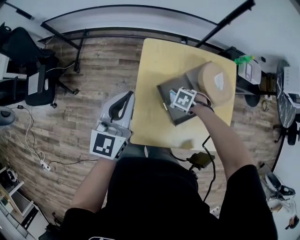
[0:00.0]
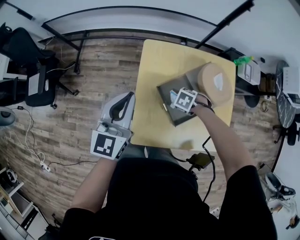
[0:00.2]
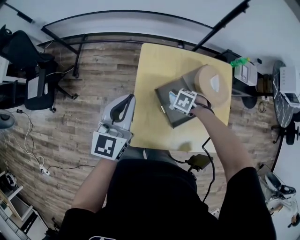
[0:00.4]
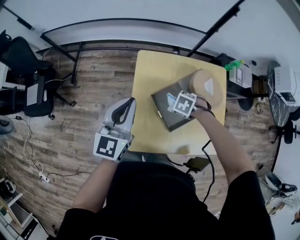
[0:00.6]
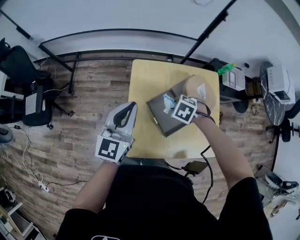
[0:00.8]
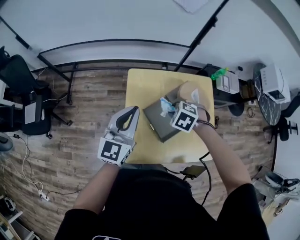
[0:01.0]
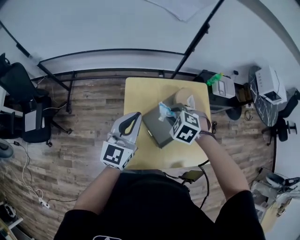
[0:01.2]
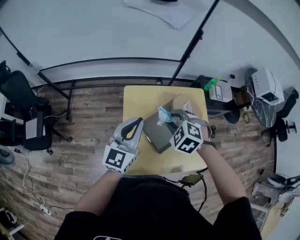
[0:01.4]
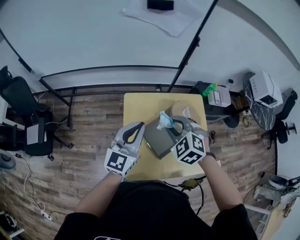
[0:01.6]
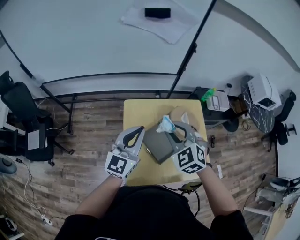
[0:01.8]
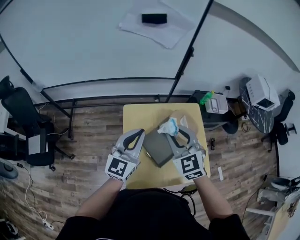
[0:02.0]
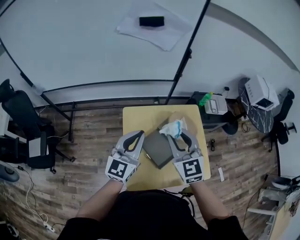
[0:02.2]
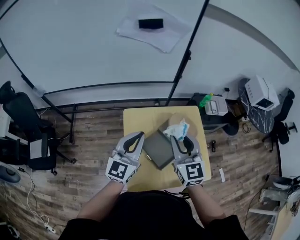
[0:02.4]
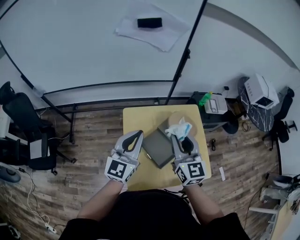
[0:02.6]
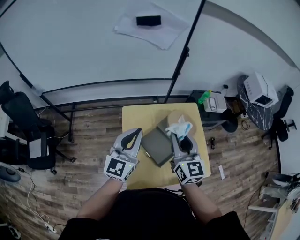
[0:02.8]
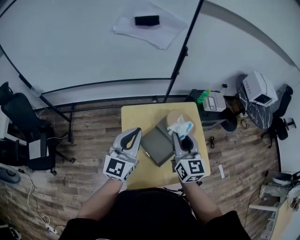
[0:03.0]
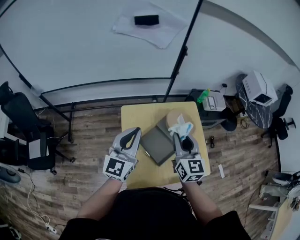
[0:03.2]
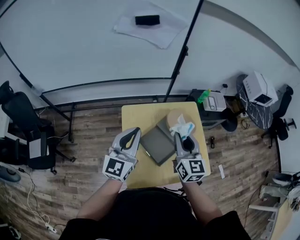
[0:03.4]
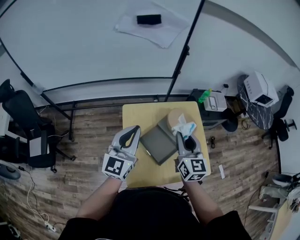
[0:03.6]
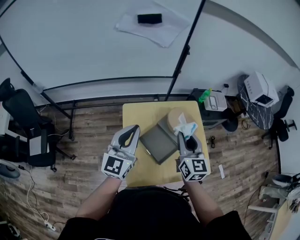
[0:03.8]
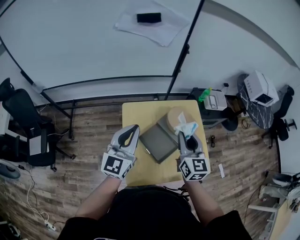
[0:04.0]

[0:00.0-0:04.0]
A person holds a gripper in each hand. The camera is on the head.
0:00.0 to 0:01.4: The right gripper shifts about 30 cm upward, and rotates approximately 40 degrees. The left gripper shifts by about 10 cm.
0:01.4 to 0:02.6: The left gripper moves roughly 5 cm, while the right gripper moves upward, about 15 cm, and tilts its fingers approximately 50 degrees upward.
0:02.6 to 0:04.0: The right gripper moves roughly 5 cm.

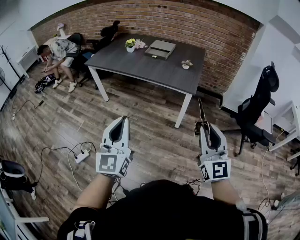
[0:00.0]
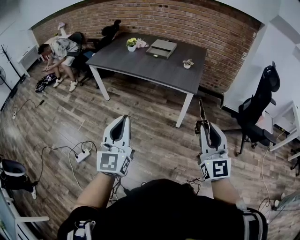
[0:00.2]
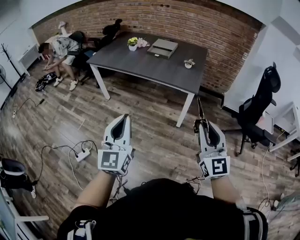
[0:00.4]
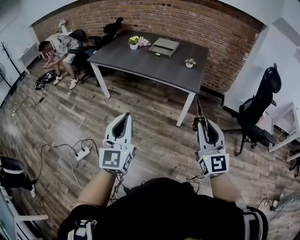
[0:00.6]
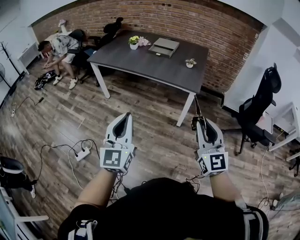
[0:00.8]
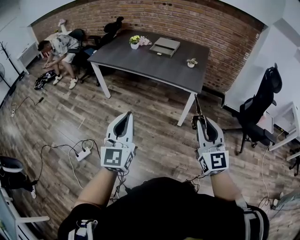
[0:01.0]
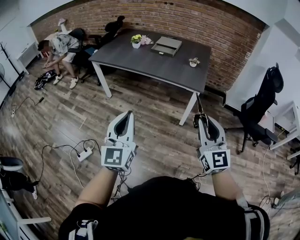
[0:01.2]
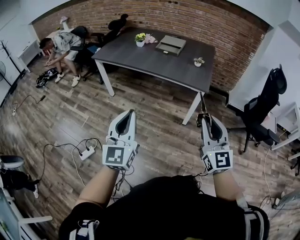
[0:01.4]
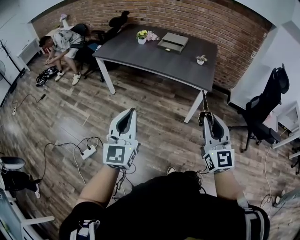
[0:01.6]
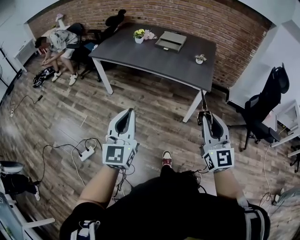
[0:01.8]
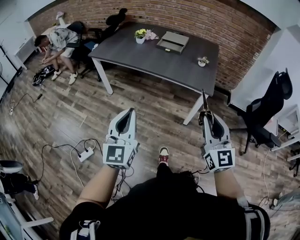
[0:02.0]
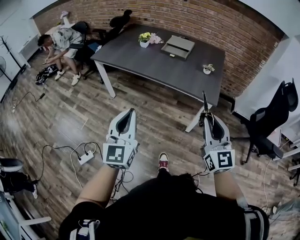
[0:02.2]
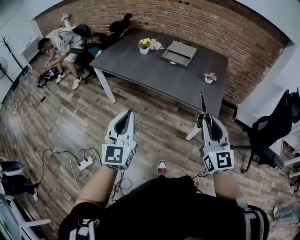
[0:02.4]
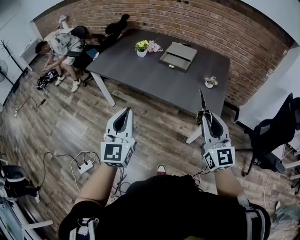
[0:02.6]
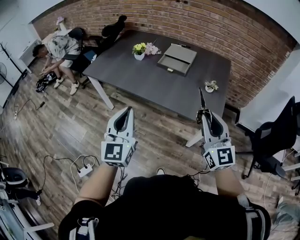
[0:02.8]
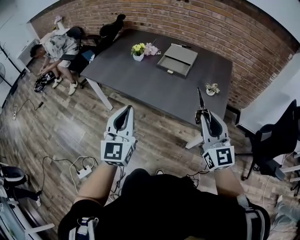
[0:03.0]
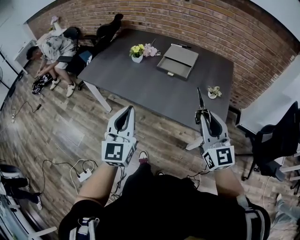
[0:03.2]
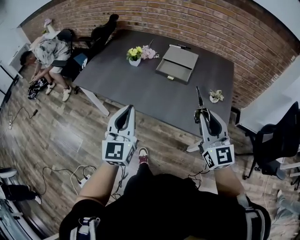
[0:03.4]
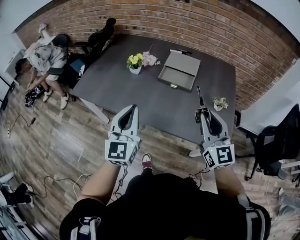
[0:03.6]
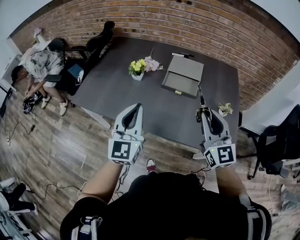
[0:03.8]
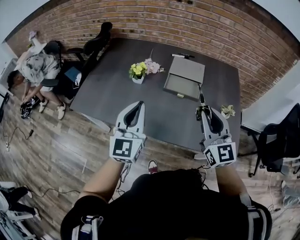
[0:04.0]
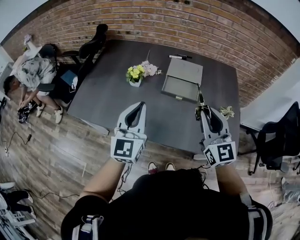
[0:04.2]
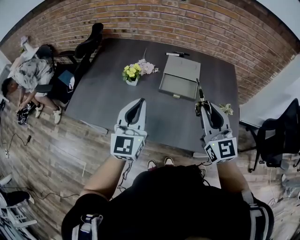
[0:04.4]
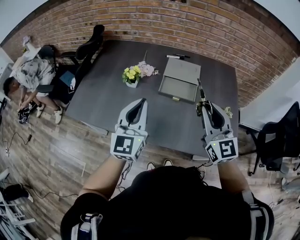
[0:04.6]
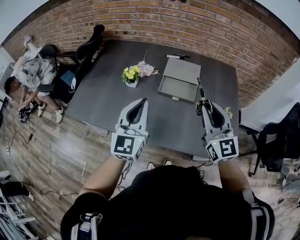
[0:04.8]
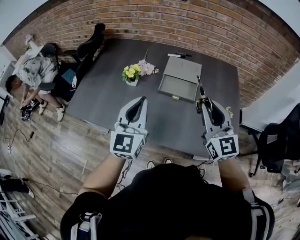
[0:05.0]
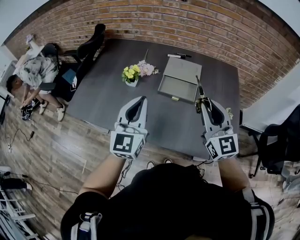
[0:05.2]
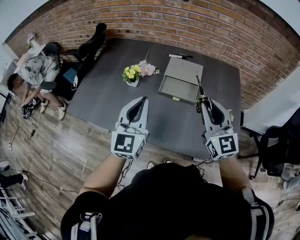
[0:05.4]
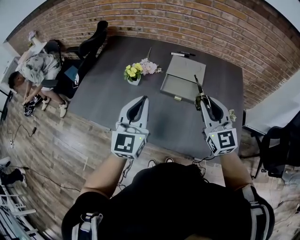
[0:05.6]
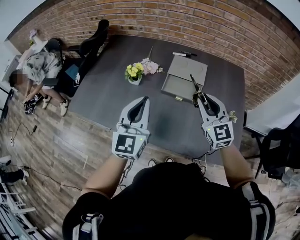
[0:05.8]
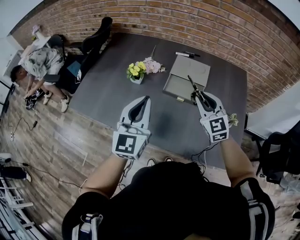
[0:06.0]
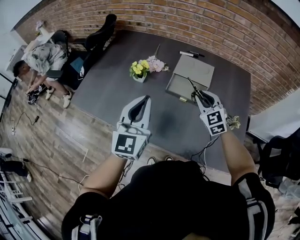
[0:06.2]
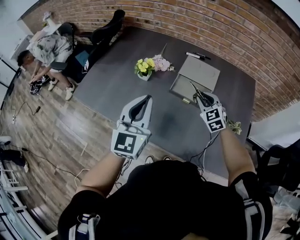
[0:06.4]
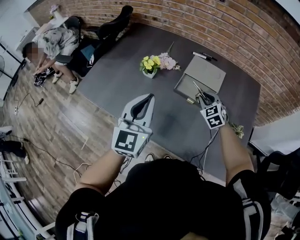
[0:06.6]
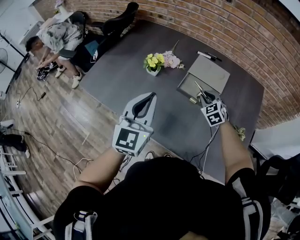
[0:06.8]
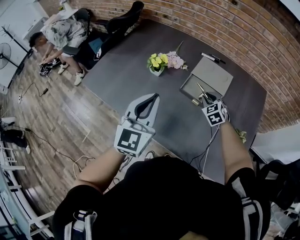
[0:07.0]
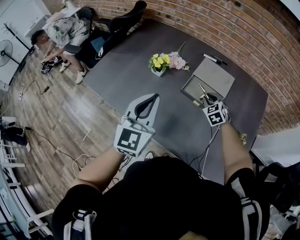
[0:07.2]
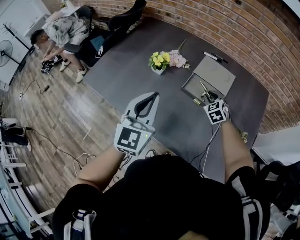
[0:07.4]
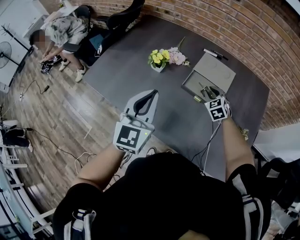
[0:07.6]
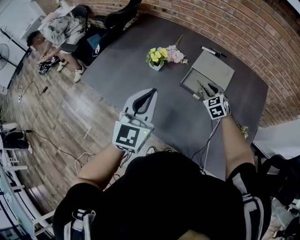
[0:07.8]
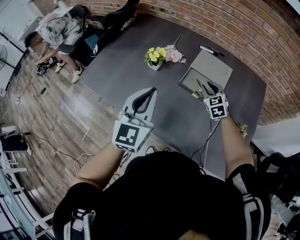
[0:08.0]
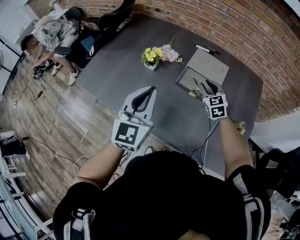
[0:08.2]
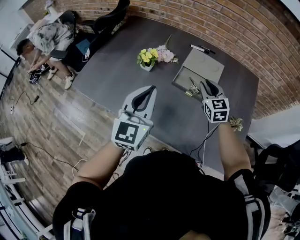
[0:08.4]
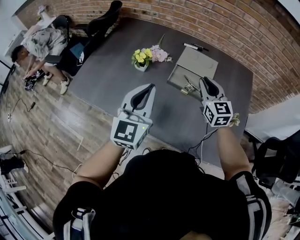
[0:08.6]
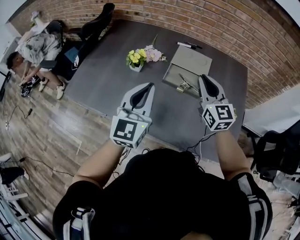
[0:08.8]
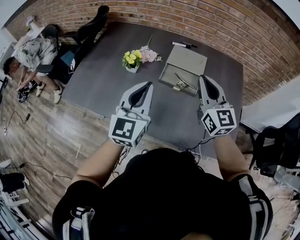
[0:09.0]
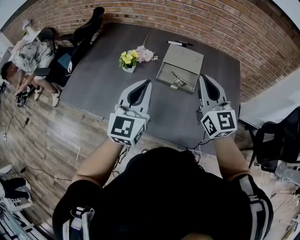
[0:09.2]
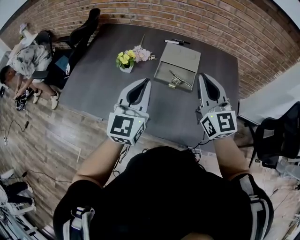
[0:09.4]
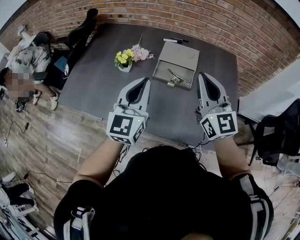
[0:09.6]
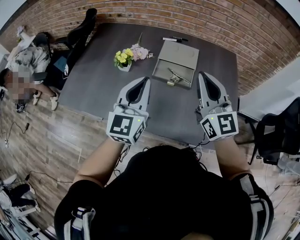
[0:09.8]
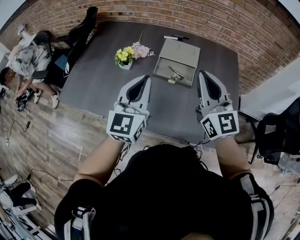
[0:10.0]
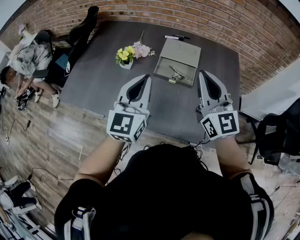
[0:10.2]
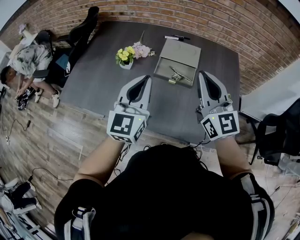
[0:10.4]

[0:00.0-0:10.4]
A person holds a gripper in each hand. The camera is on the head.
0:00.0 to 0:01.4: Both grippers move to the left, some 10 cm.
0:01.4 to 0:03.0: The grippers both shift forward by approximately 40 cm.
0:03.0 to 0:04.4: The grippers both shift forward by approximately 30 cm.
0:04.4 to 0:06.0: The right gripper travels forward and downward by roughly 15 cm, and turns by about 20 degrees.
0:06.0 to 0:07.4: The right gripper is displaced downward and forward by roughly 20 cm, and swivels about 30 degrees.
0:07.4 to 0:09.0: The right gripper is displaced upward and backward by approximately 30 cm, and points its fingers approximately 40 degrees further upward.
0:09.0 to 0:10.4: The right gripper shifts some 5 cm backward.

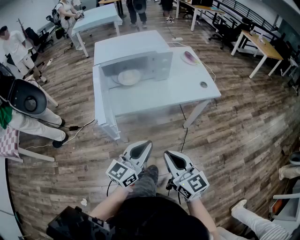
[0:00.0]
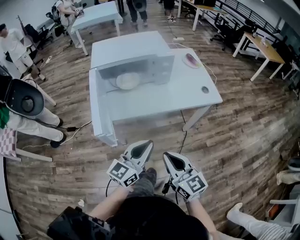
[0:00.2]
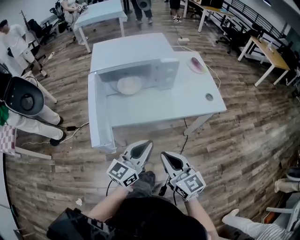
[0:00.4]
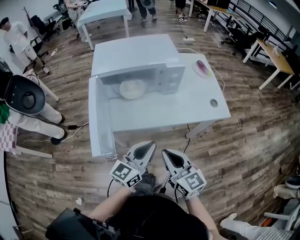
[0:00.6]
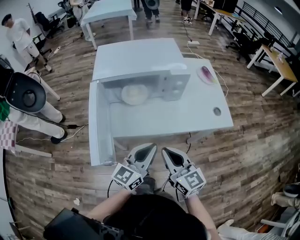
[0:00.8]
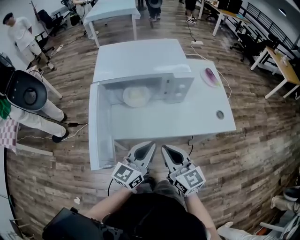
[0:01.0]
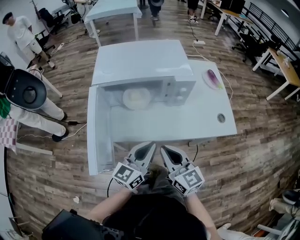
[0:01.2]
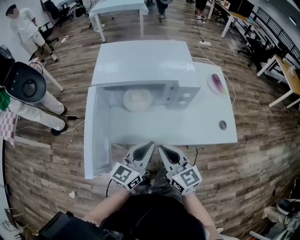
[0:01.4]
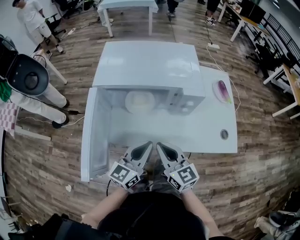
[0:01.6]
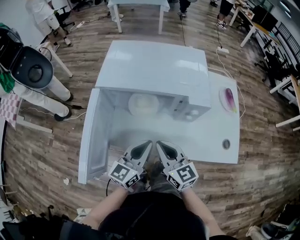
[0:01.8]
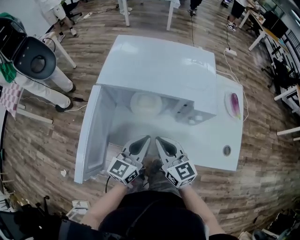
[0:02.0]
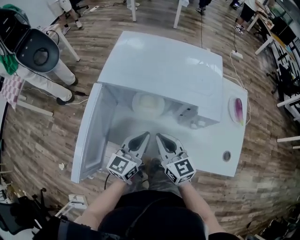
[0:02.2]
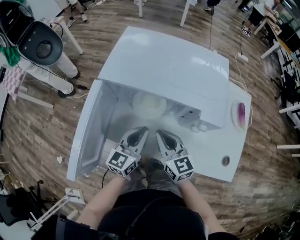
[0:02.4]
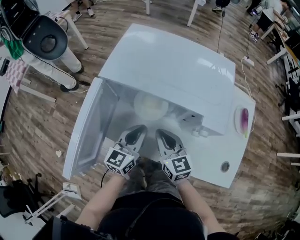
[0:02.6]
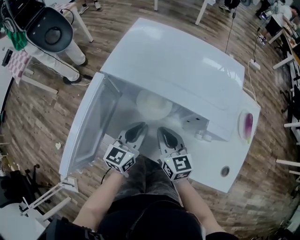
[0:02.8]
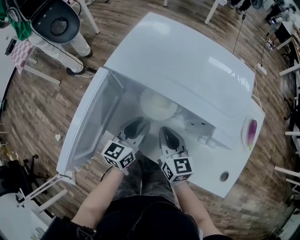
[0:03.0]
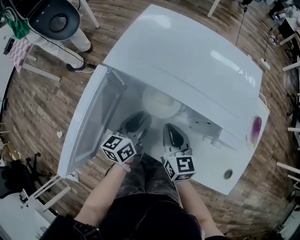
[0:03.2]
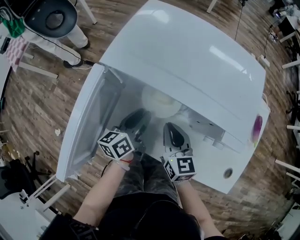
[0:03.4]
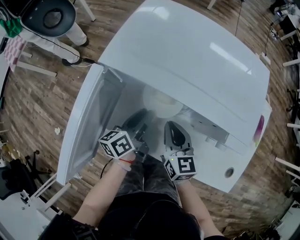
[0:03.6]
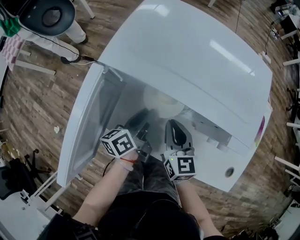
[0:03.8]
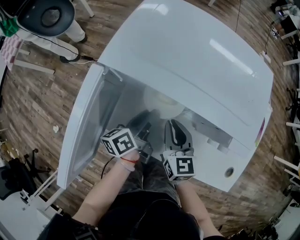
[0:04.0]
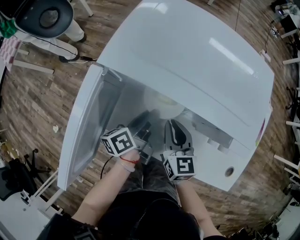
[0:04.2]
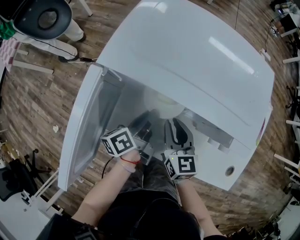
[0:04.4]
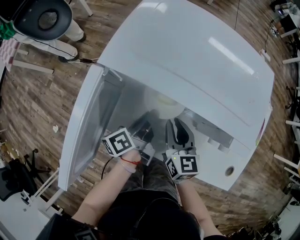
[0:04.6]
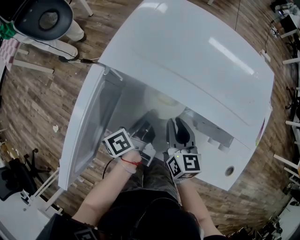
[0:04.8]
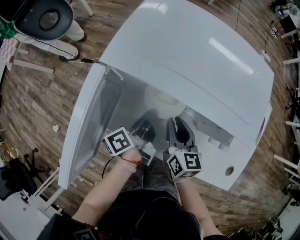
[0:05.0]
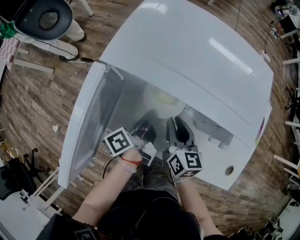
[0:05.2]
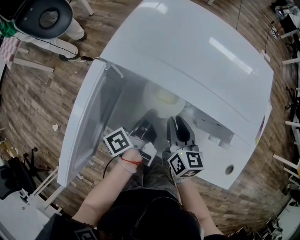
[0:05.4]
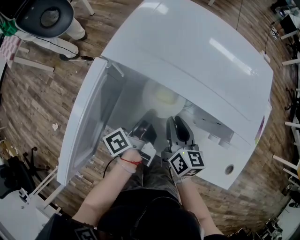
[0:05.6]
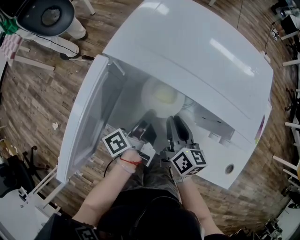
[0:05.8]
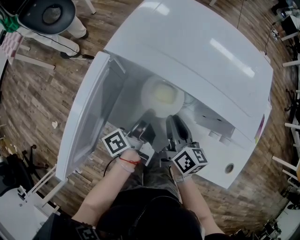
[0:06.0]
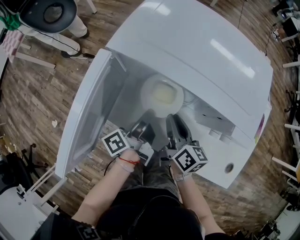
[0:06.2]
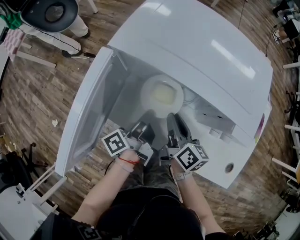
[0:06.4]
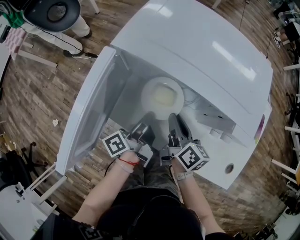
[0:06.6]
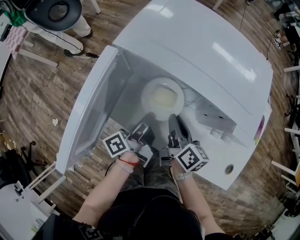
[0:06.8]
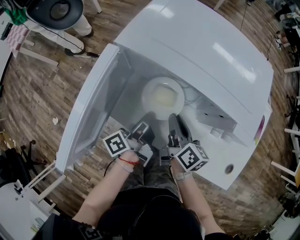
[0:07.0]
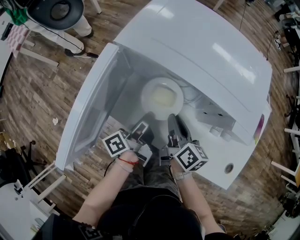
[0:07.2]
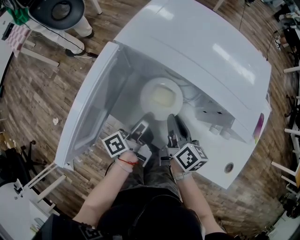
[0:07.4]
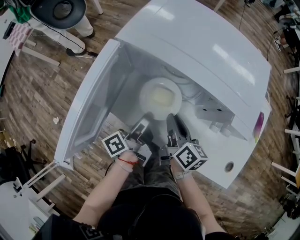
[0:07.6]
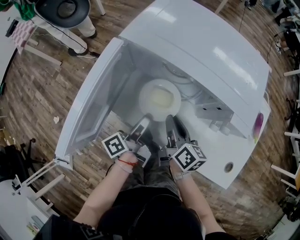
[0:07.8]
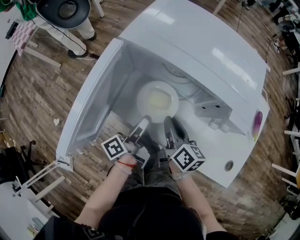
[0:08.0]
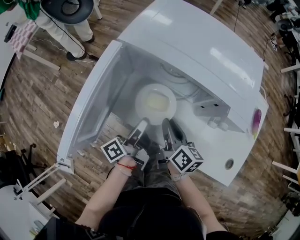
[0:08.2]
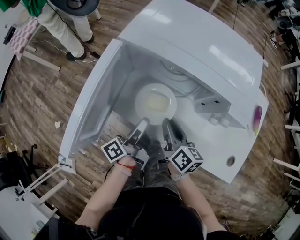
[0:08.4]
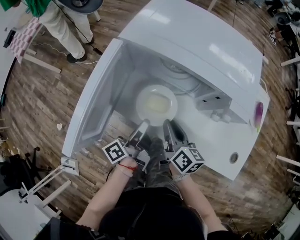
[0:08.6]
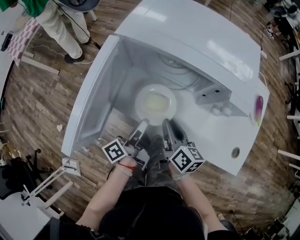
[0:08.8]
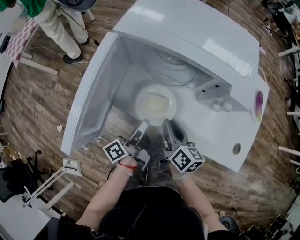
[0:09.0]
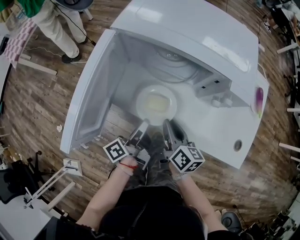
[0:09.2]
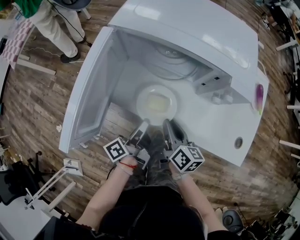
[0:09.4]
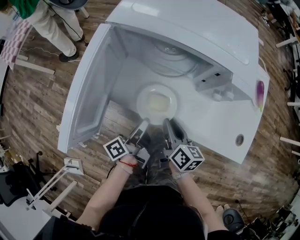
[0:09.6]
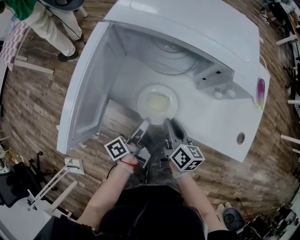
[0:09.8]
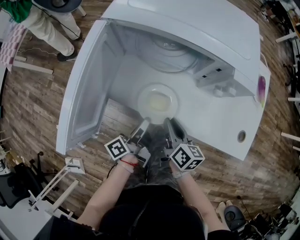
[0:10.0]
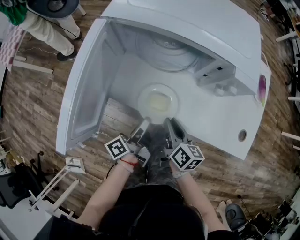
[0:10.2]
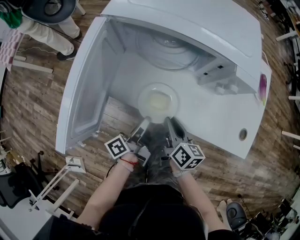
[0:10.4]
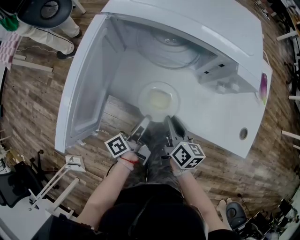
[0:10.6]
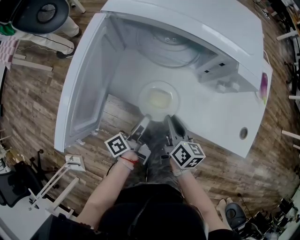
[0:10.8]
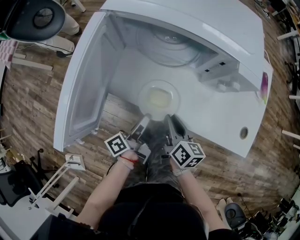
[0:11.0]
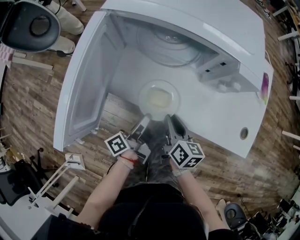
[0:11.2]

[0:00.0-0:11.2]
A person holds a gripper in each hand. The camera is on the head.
0:00.0 to 0:01.6: Both grippers travel together forward, approximately 30 cm. The left gripper turns by roughly 20 degrees.
0:01.6 to 0:03.2: Both grippers move forward and downward, some 20 cm. The left gripper turns by about 40 degrees, and opens.
0:03.2 to 0:04.8: The left gripper twists some 40 degrees counterclockwise, seen from behind, and closes its fingers.
0:04.8 to 0:06.4: The right gripper swivels approximately 30 degrees.
0:06.4 to 0:08.0: The left gripper travels backward by approximately 5 cm.
0:08.0 to 0:09.6: The grippers both shift backward by roughly 10 cm.
0:09.6 to 0:11.2: The grippers move only a little.
